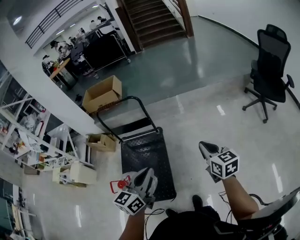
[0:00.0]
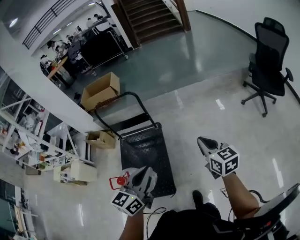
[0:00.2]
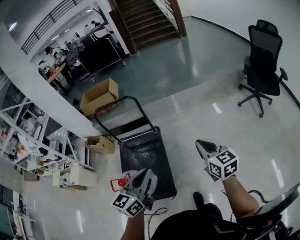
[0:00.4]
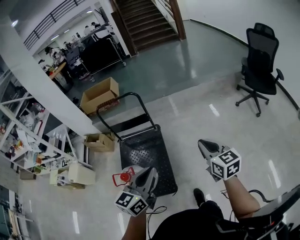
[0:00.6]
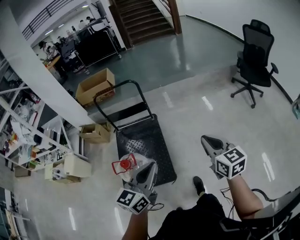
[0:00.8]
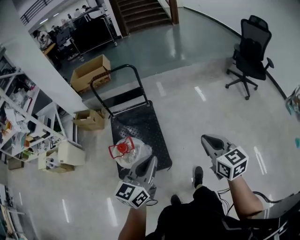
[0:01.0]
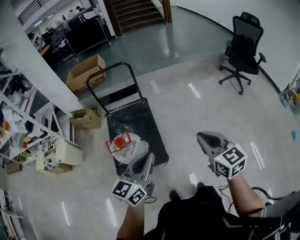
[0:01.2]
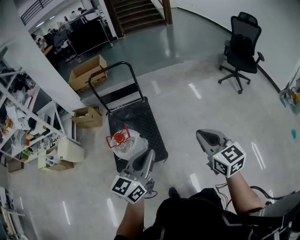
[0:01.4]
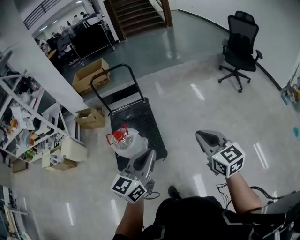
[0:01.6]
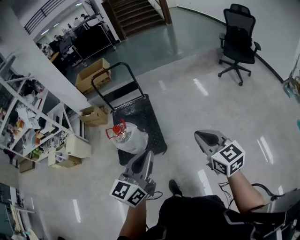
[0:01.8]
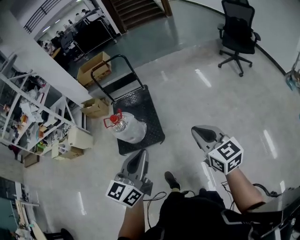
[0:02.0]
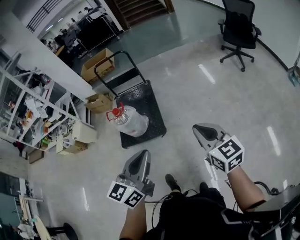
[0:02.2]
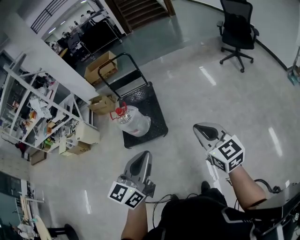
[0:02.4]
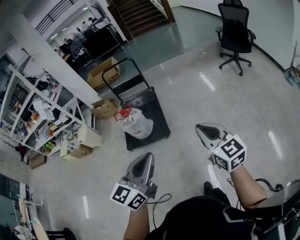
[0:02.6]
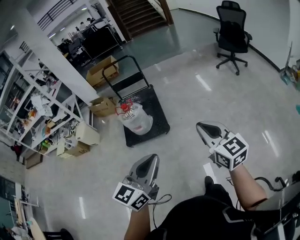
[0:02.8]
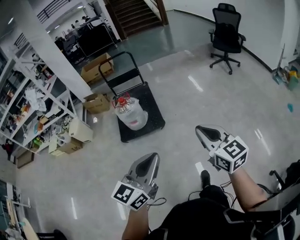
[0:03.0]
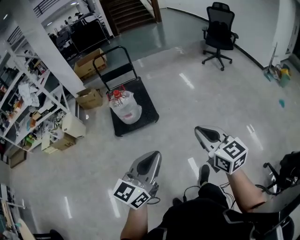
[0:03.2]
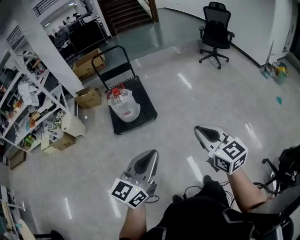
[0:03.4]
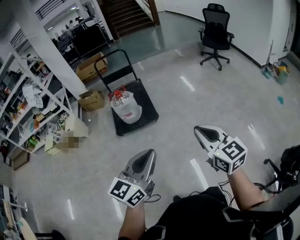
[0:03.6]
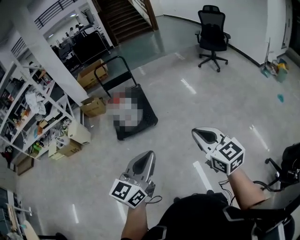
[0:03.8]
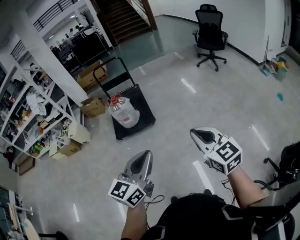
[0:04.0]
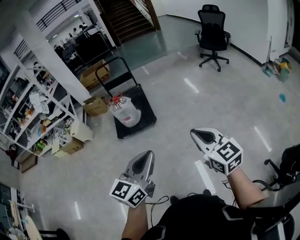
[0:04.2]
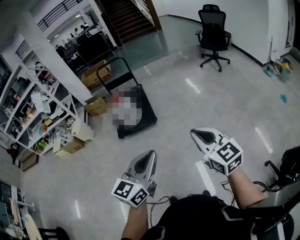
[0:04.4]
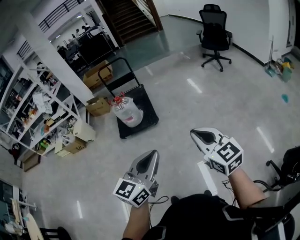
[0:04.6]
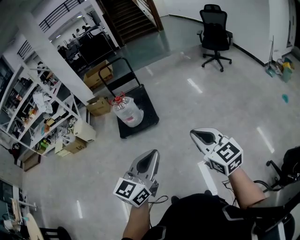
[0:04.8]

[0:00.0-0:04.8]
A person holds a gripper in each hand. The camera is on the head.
0:00.0 to 0:01.6: The two grippers go about 40 cm backward.
0:01.6 to 0:03.2: The pair of grippers is taken backward, about 50 cm.
0:03.2 to 0:04.8: The grippers both shift to the right and backward by some 20 cm.

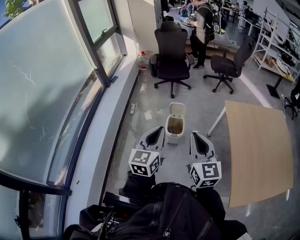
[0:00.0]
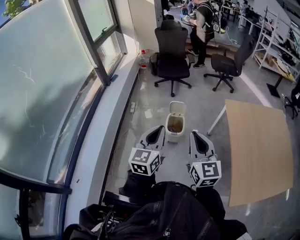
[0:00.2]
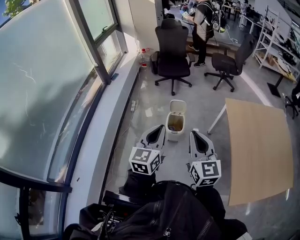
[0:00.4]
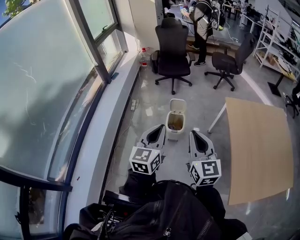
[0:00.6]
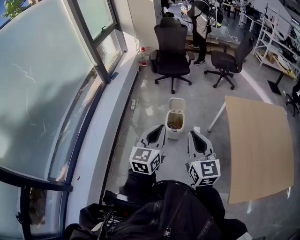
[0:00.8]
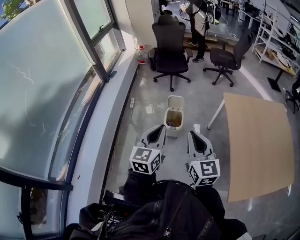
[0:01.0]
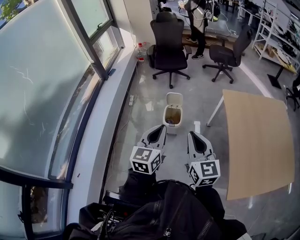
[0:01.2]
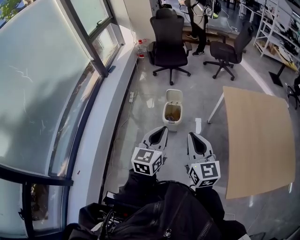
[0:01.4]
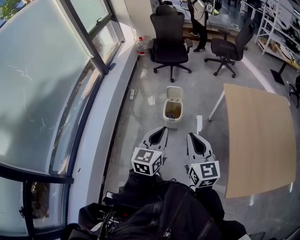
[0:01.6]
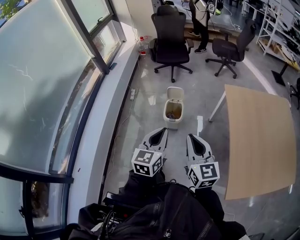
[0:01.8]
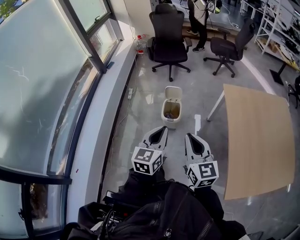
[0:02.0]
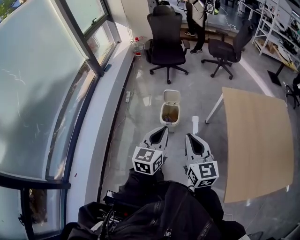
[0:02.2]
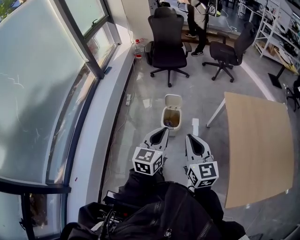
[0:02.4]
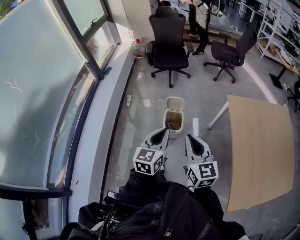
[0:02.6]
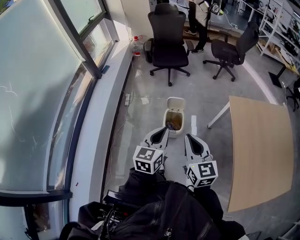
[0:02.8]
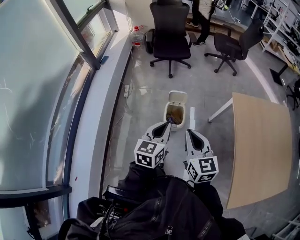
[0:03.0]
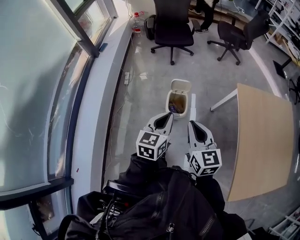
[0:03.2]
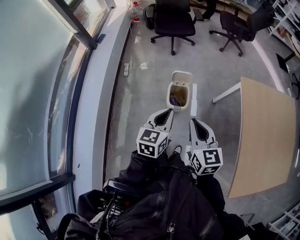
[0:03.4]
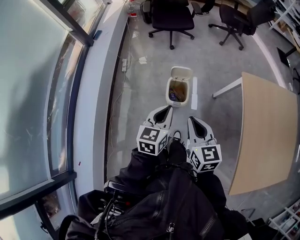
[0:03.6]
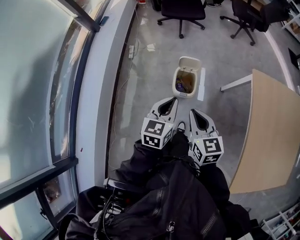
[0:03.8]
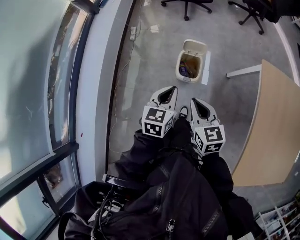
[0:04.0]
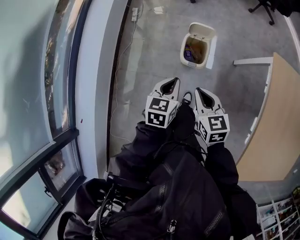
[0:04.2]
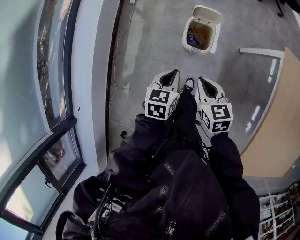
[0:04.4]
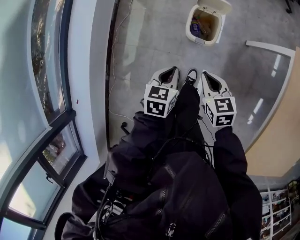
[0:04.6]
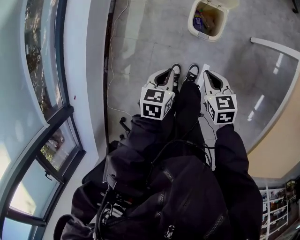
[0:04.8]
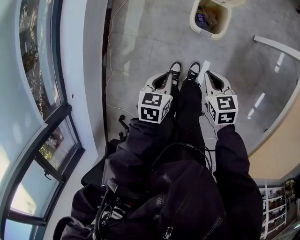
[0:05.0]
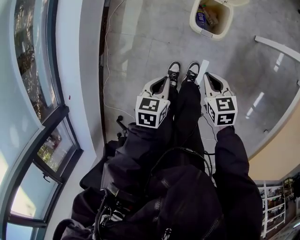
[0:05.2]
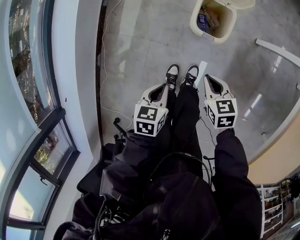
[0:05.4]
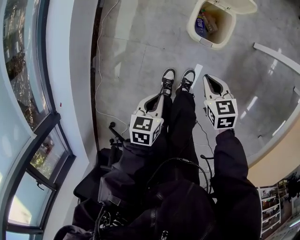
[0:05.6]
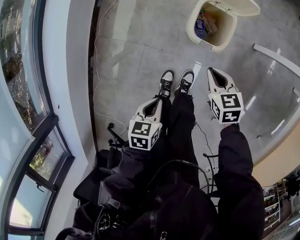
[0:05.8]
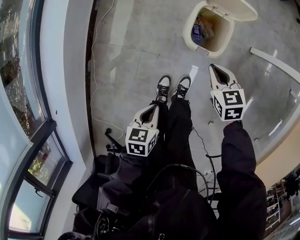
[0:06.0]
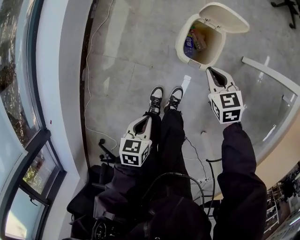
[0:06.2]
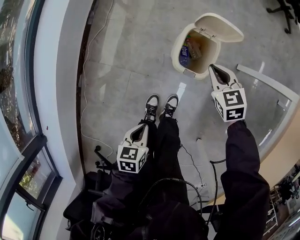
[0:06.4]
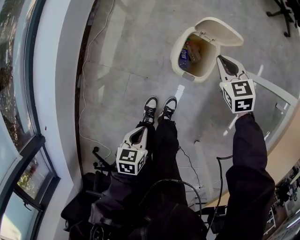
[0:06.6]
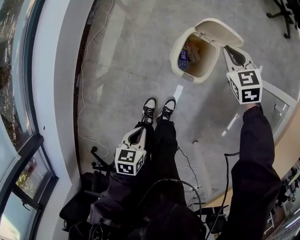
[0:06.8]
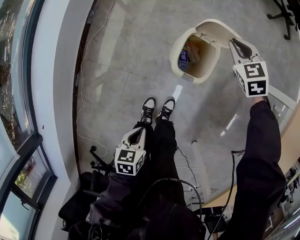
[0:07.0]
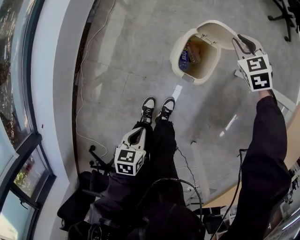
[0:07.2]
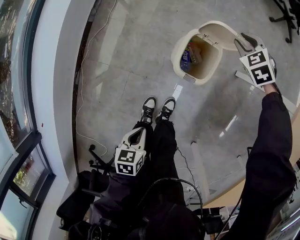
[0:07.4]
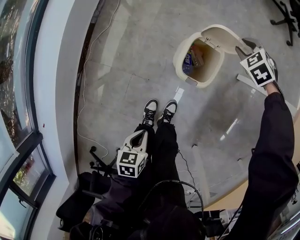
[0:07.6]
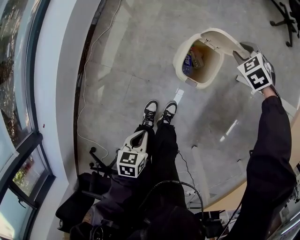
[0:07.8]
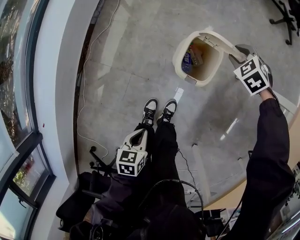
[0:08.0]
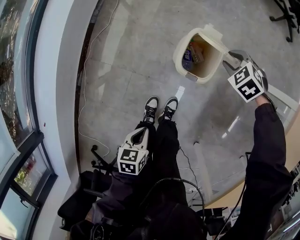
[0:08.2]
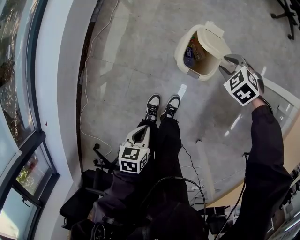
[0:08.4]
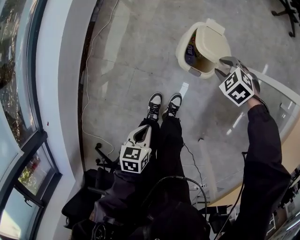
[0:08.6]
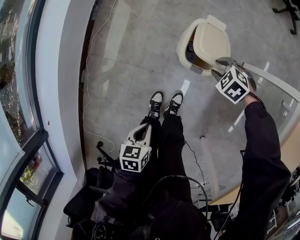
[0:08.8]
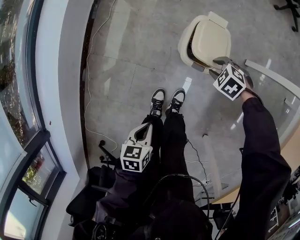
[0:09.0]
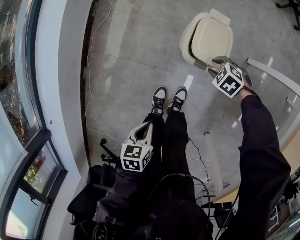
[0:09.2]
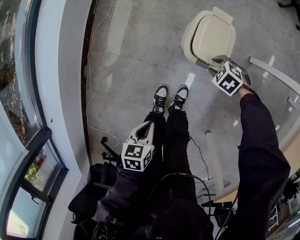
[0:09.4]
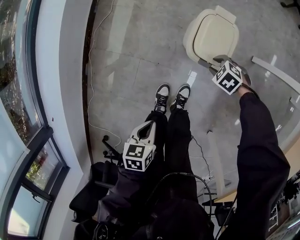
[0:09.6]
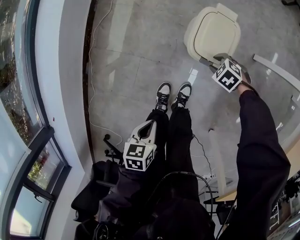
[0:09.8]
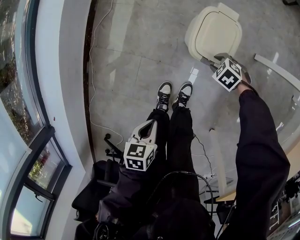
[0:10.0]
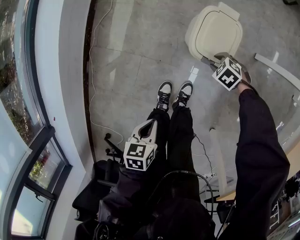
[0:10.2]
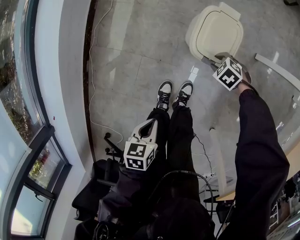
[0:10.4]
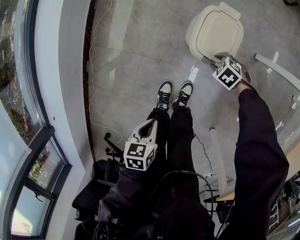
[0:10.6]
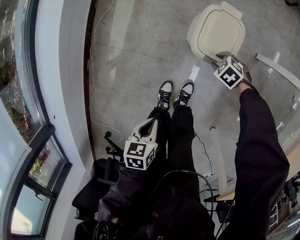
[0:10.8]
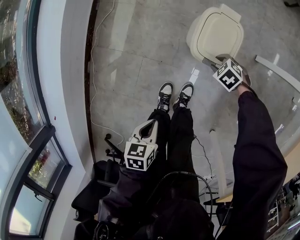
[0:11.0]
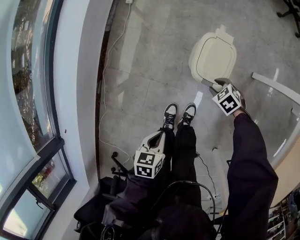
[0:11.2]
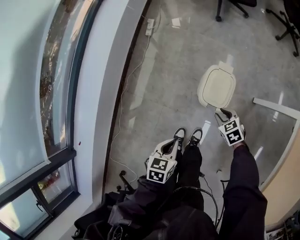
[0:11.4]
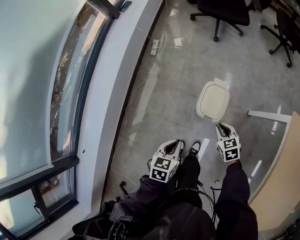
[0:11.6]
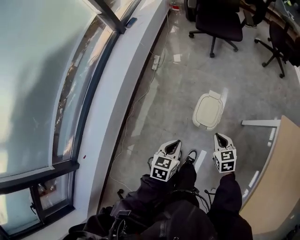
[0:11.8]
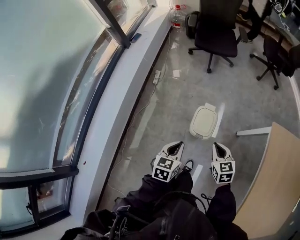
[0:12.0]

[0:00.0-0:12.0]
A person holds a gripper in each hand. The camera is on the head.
0:00.0 to 0:01.6: Both grippers move to the right and downward, about 10 cm.
0:01.6 to 0:03.0: Both grippers travel together forward and to the left, about 20 cm.
0:03.0 to 0:04.4: Both grippers travel together downward, about 30 cm. The right gripper turns by roughly 30 degrees. The left gripper turns by about 30 degrees.
0:04.4 to 0:06.0: The left gripper goes approximately 25 cm downward and backward, and changes its angle by approximately 20 degrees, while the right gripper goes some 30 cm downward.
0:06.0 to 0:07.6: The right gripper heads forward, covering about 25 cm, twists roughly 40 degrees counterclockwise, seen from behind, and opens its fingers.
0:07.6 to 0:09.0: The right gripper ends up roughly 25 cm from where it was, and turns by approximately 20 degrees.
0:09.0 to 0:10.4: The right gripper travels downward by about 10 cm.
0:10.4 to 0:12.0: Both grippers travel together upward, about 40 cm. The right gripper angles its fingers upward, by roughly 40 degrees, and closes; the left gripper changes its angle by about 40 degrees.

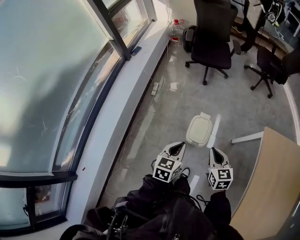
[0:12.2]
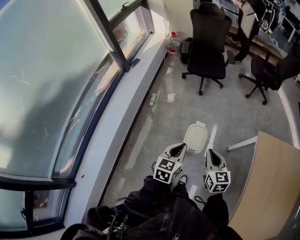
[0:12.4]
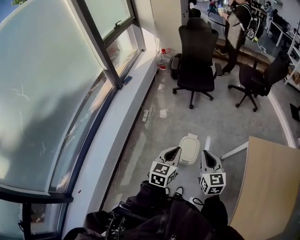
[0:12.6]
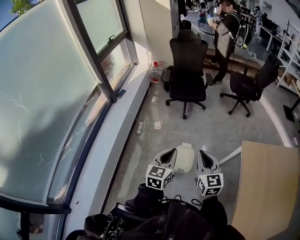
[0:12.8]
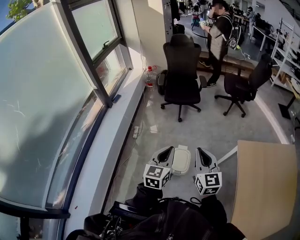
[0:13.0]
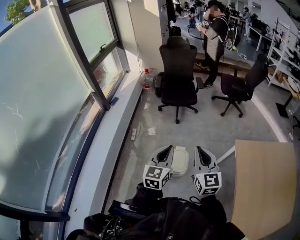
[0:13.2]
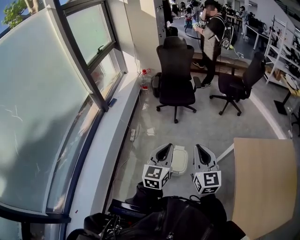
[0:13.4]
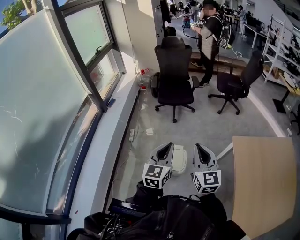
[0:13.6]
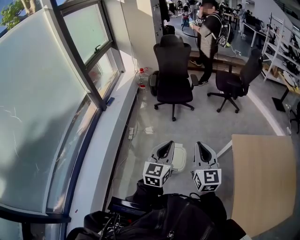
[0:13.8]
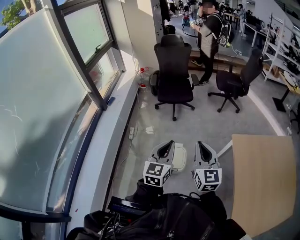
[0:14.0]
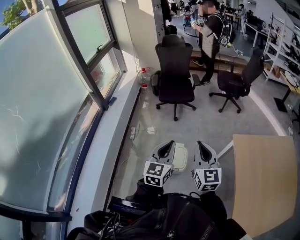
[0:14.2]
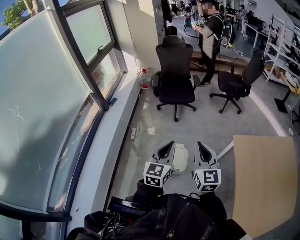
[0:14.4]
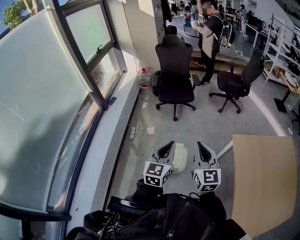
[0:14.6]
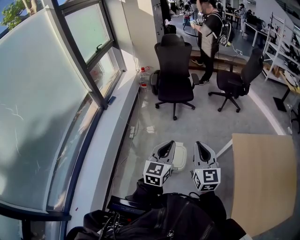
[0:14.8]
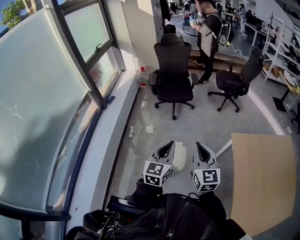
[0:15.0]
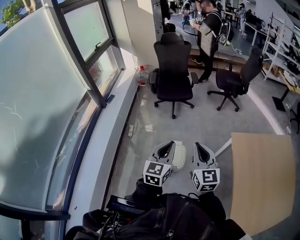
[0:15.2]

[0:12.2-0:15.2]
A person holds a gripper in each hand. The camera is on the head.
0:12.2 to 0:13.8: Both grippers move upward, approximately 25 cm. The right gripper rotates some 30 degrees; the left gripper rotates about 30 degrees.
0:13.8 to 0:15.2: The grippers make only small movements.

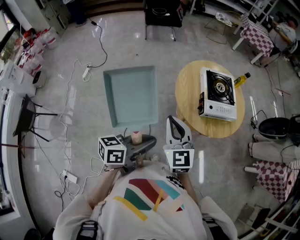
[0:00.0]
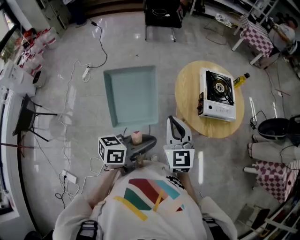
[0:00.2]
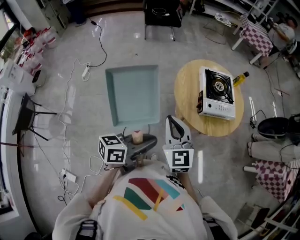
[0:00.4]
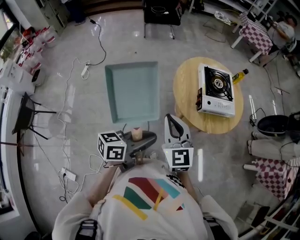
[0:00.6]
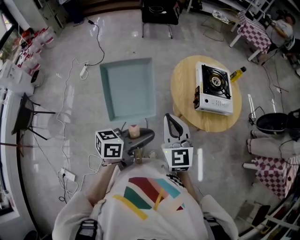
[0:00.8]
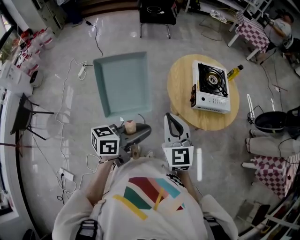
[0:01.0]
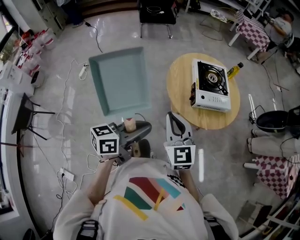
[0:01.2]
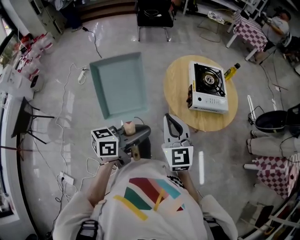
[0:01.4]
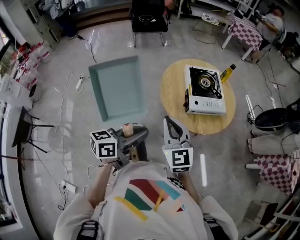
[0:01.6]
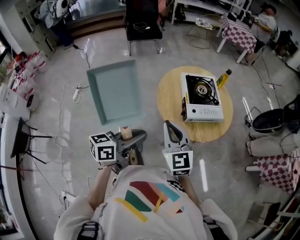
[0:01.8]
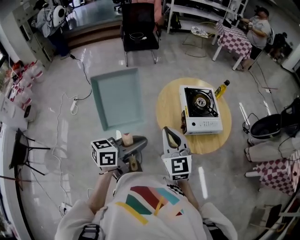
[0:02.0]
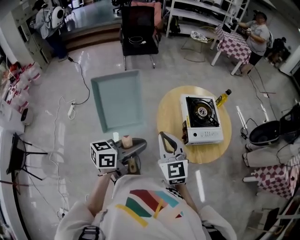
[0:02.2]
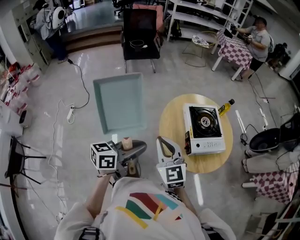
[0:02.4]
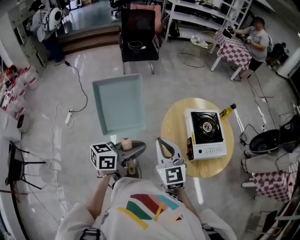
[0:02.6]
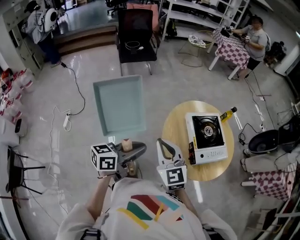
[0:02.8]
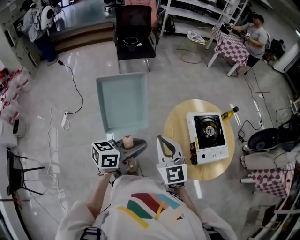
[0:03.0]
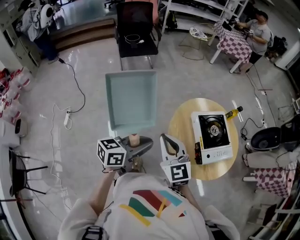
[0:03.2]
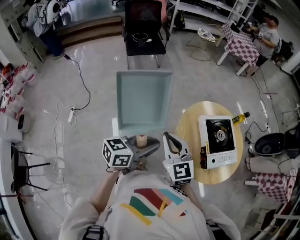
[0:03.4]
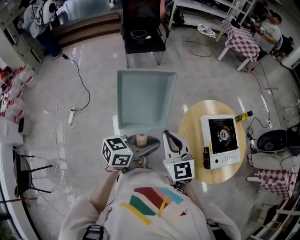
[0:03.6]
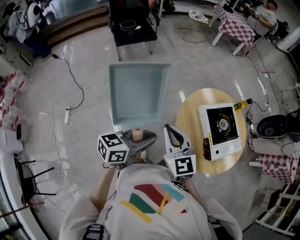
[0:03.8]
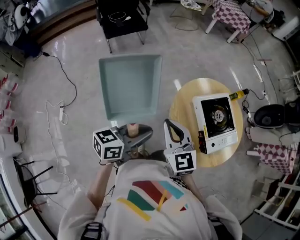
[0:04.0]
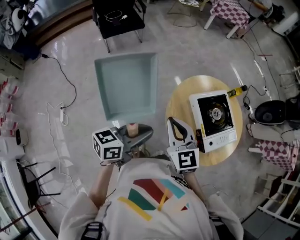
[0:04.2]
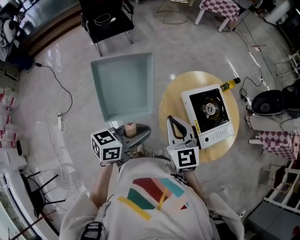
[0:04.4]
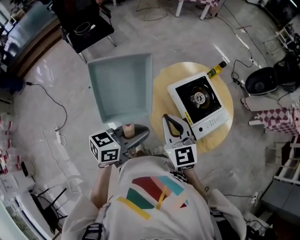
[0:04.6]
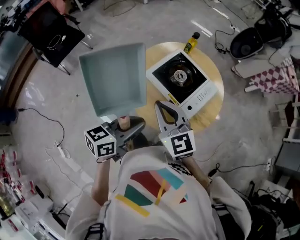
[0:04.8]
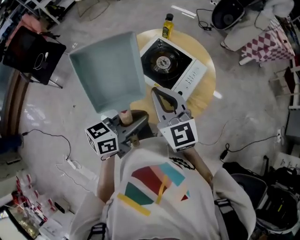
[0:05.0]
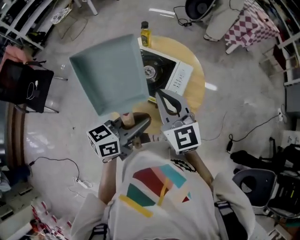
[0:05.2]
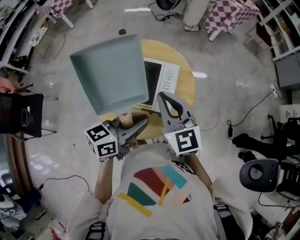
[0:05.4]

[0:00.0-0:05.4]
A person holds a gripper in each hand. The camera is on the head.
0:00.0 to 0:01.4: The right gripper heads to the right, covering approximately 5 cm.
0:01.4 to 0:02.8: Both grippers move forward and to the left, approximately 25 cm.
0:02.8 to 0:04.0: The two grippers go some 15 cm forward and to the left.
0:04.0 to 0:05.4: The left gripper ends up roughly 30 cm from where it was, and changes its angle by roughly 60 degrees. The right gripper changes place by some 35 cm, and turns by about 60 degrees.
